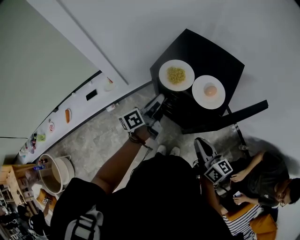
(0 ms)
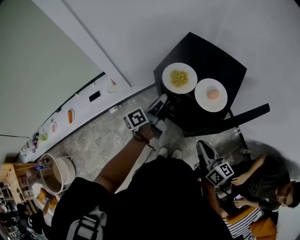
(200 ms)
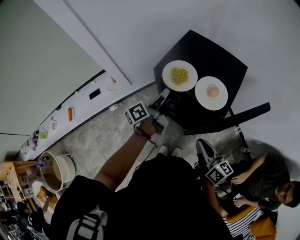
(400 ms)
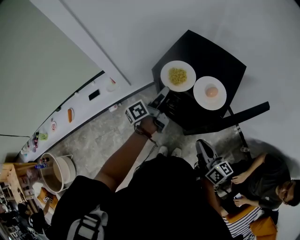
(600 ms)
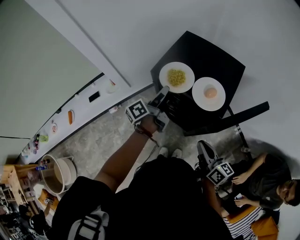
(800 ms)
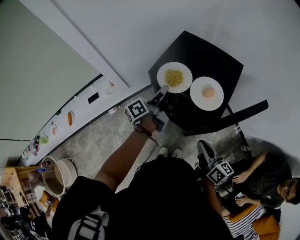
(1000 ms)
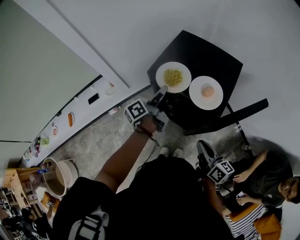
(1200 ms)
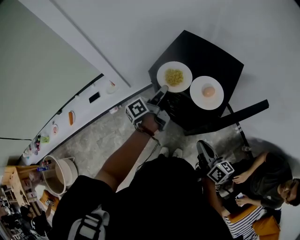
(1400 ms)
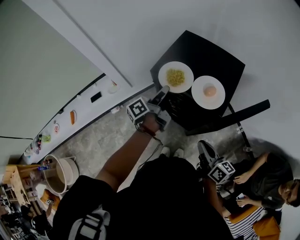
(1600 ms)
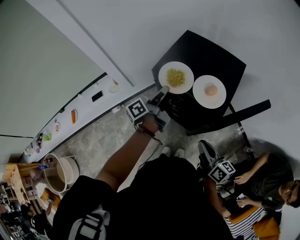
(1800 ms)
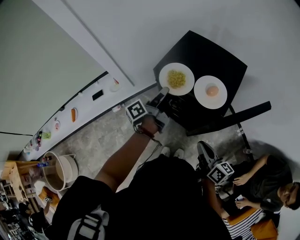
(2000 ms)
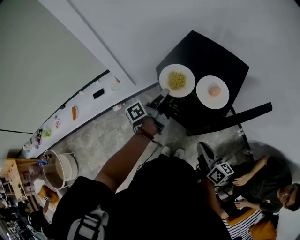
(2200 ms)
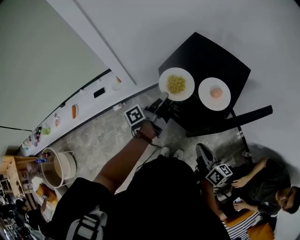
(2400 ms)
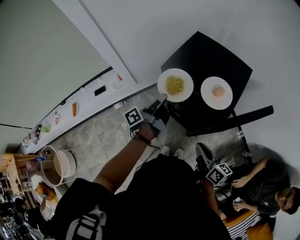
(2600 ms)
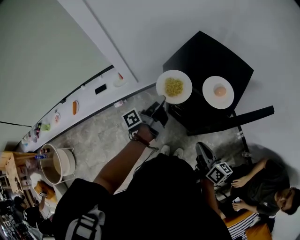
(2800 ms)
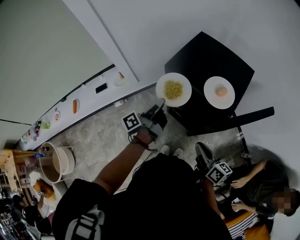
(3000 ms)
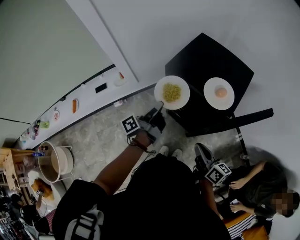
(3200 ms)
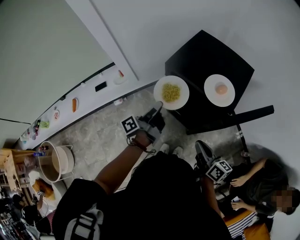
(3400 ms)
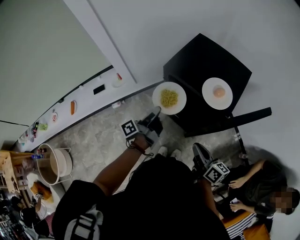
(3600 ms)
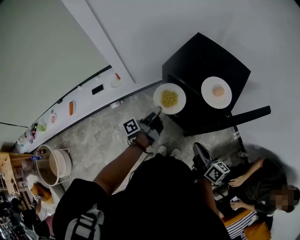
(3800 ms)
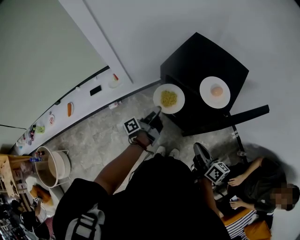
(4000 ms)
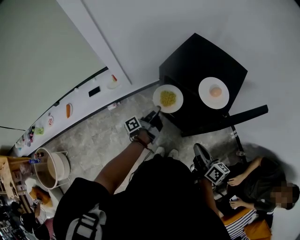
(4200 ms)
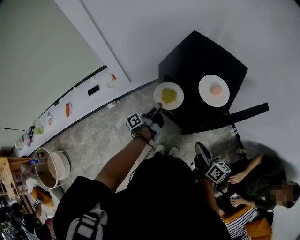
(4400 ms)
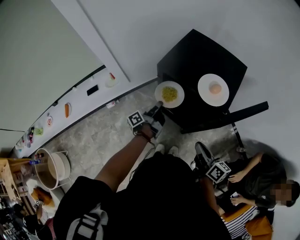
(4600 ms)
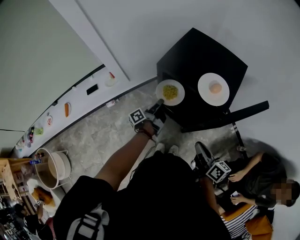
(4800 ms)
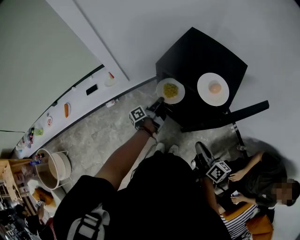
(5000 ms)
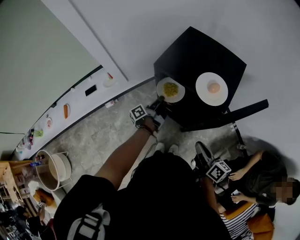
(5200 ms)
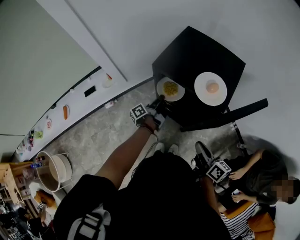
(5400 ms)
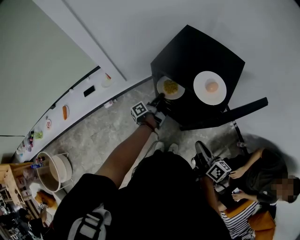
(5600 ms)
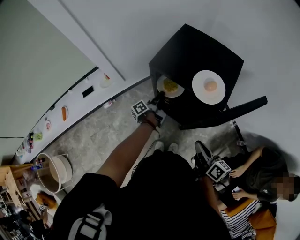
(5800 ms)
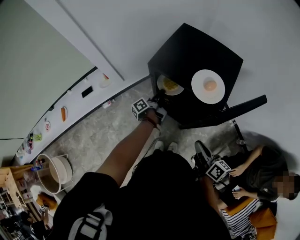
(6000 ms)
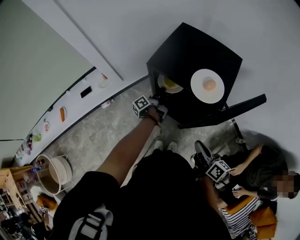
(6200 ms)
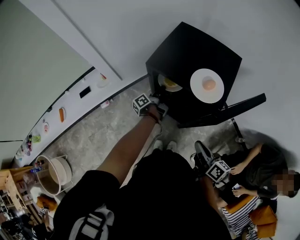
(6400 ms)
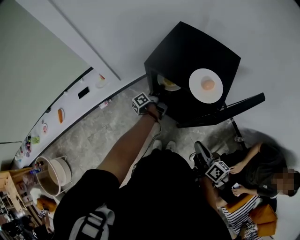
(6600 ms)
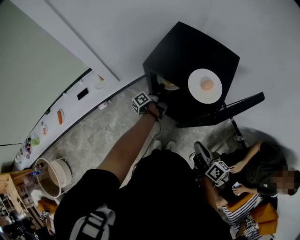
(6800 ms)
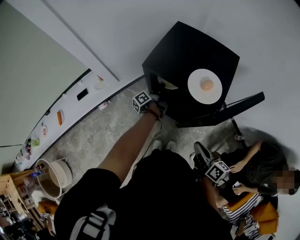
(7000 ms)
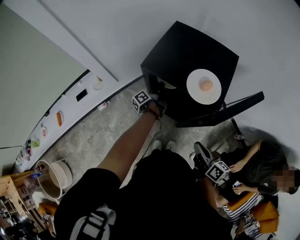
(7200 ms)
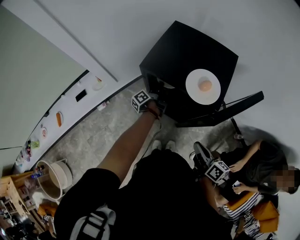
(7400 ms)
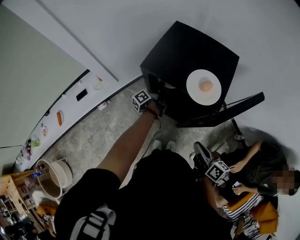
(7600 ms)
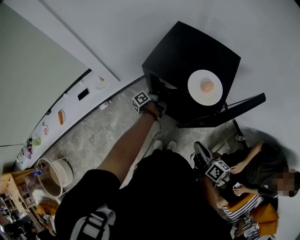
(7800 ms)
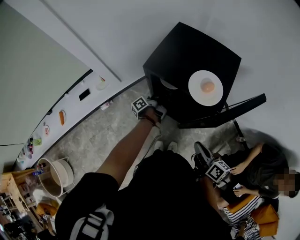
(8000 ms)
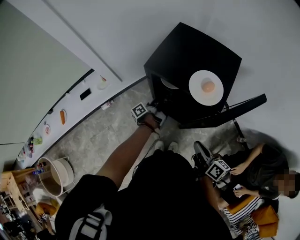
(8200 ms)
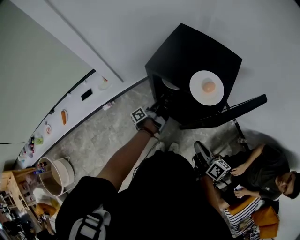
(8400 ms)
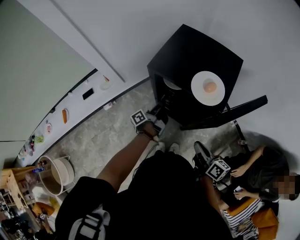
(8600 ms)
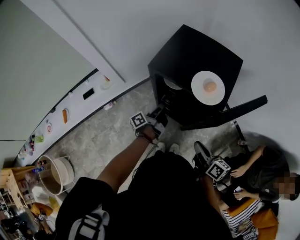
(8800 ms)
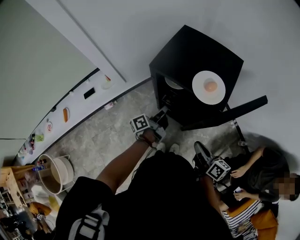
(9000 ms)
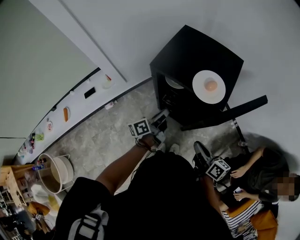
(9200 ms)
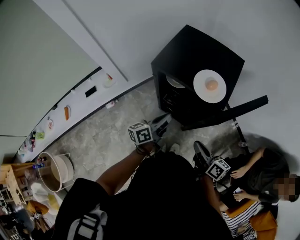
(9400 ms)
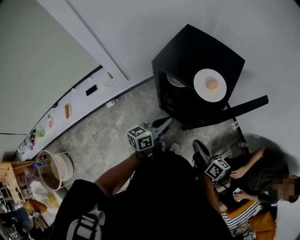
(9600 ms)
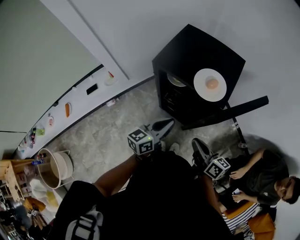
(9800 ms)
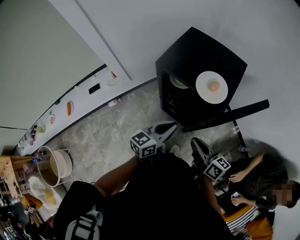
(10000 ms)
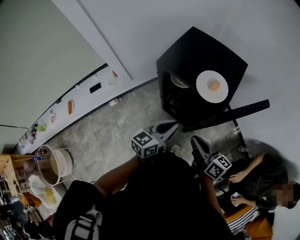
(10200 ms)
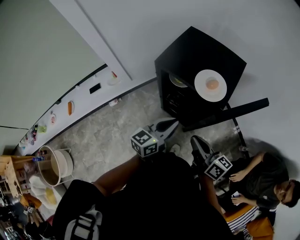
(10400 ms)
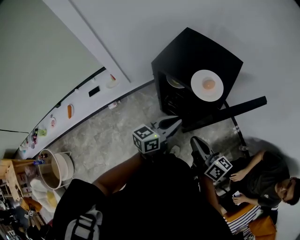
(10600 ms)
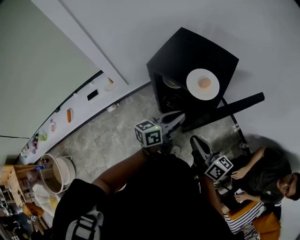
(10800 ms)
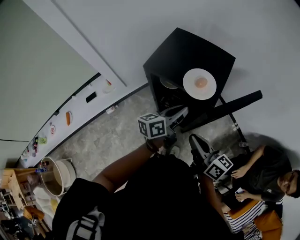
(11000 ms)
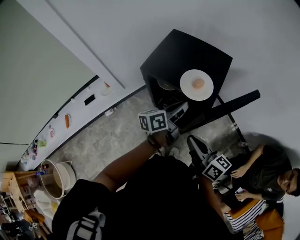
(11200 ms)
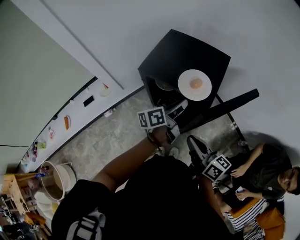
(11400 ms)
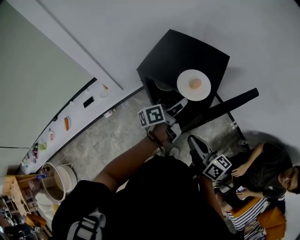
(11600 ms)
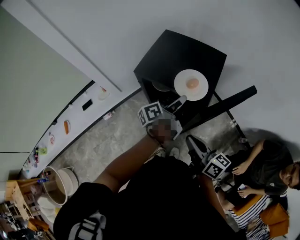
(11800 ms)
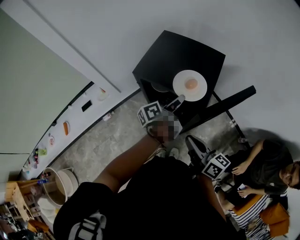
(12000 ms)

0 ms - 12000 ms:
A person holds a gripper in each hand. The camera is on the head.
0 ms - 1600 ms: The left gripper changes its angle by about 20 degrees, and opens, then closes again.
1600 ms - 3000 ms: The left gripper shifts about 10 cm backward and to the left.
3000 ms - 4400 ms: The left gripper goes about 10 cm downward.
4400 ms - 6000 ms: The left gripper heads forward and downward, covering roughly 10 cm.
6000 ms - 7600 ms: The left gripper travels forward by about 5 cm.
7600 ms - 9000 ms: The left gripper travels backward and upward by approximately 15 cm.
9000 ms - 10400 ms: The left gripper goes some 15 cm upward, backward and to the right, and rotates around the line of its fingers by some 50 degrees, clockwise from behind. The right gripper travels upward by approximately 10 cm.
10400 ms - 12000 ms: The left gripper heads forward and to the right, covering about 15 cm, and rotates around the line of its fingers by about 50 degrees, counterclockwise from behind.

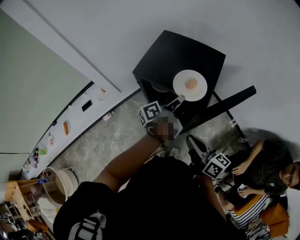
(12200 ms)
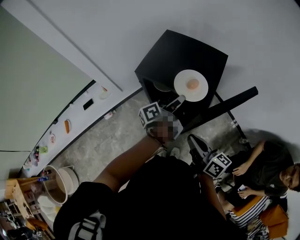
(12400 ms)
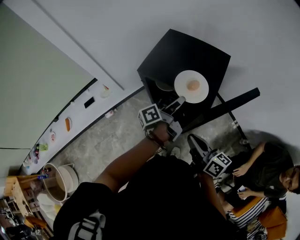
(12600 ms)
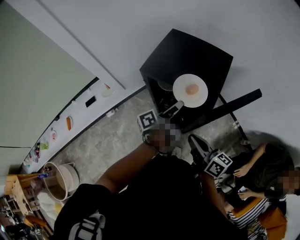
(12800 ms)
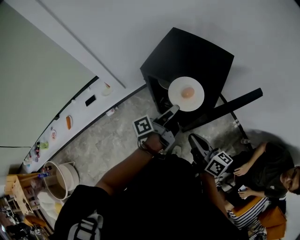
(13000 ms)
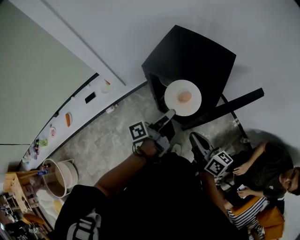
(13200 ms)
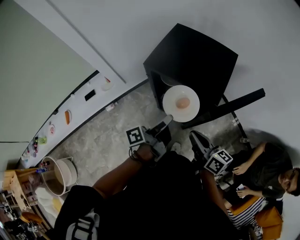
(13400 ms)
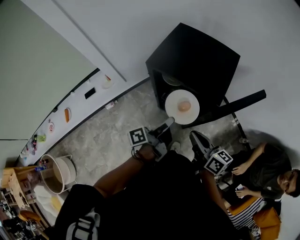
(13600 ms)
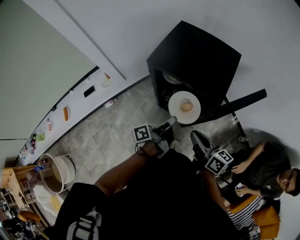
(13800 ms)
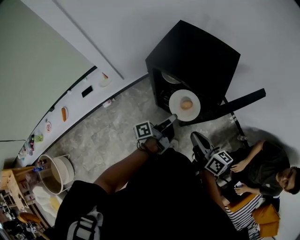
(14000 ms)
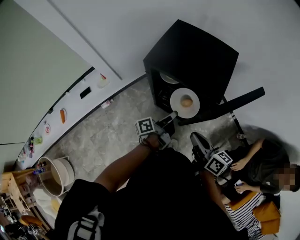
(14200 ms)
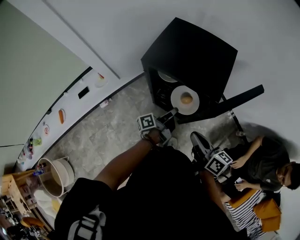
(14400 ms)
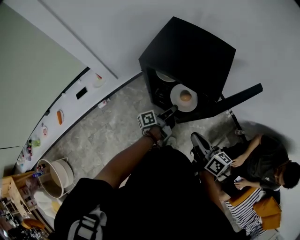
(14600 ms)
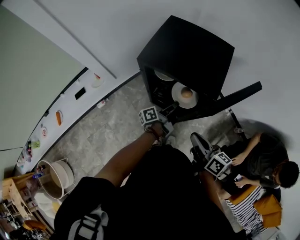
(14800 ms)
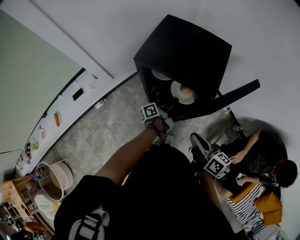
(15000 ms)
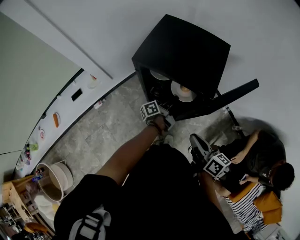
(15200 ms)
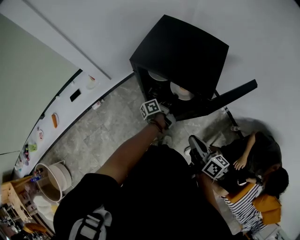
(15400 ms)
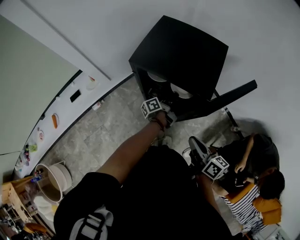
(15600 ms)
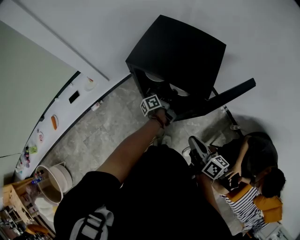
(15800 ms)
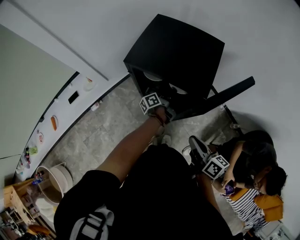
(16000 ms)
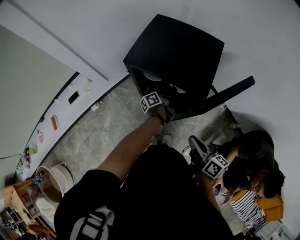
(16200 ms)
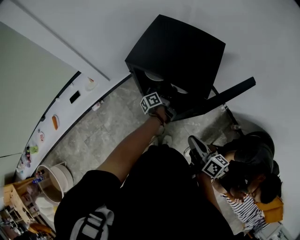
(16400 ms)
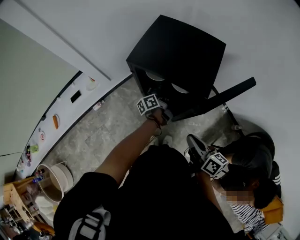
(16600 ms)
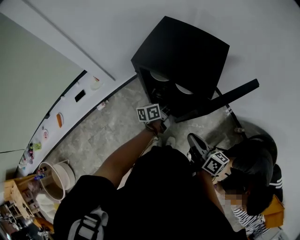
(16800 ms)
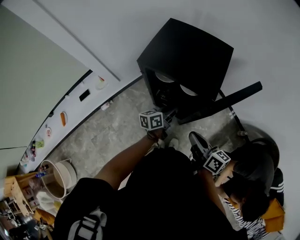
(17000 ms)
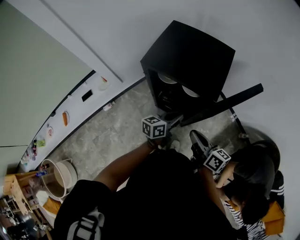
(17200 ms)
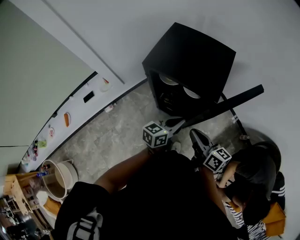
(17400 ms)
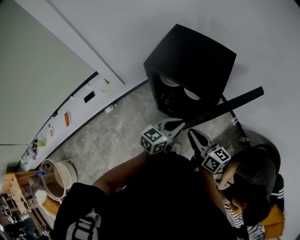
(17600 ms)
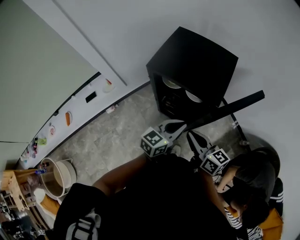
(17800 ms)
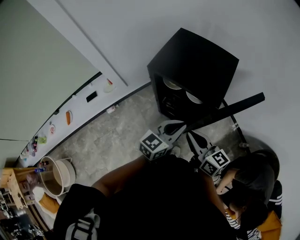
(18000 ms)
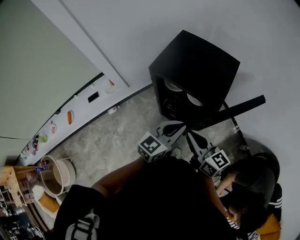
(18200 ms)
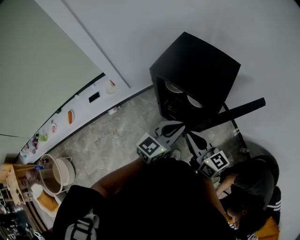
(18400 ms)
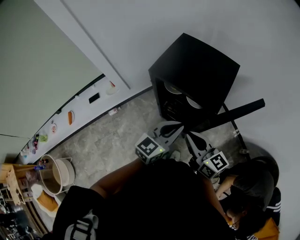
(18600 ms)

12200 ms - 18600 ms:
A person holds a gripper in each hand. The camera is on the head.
12200 ms - 13800 ms: The left gripper heads backward, to the left and downward, covering approximately 15 cm.
13800 ms - 15400 ms: The left gripper goes about 20 cm forward, downward and to the right.
15400 ms - 17000 ms: The left gripper is displaced backward by about 5 cm, and changes its angle by about 40 degrees.
17000 ms - 18600 ms: The left gripper is displaced upward and backward by some 20 cm, and rolls clockwise, seen from behind, by about 40 degrees. Meanwhile the right gripper shifts roughly 5 cm upward, and changes its angle by roughly 30 degrees.

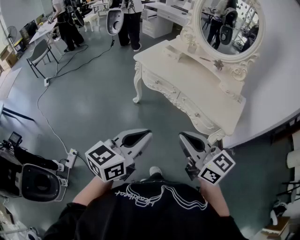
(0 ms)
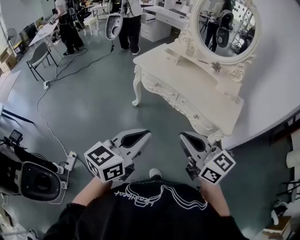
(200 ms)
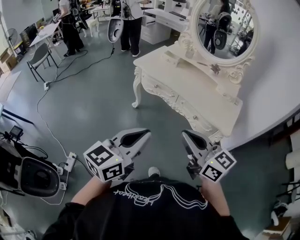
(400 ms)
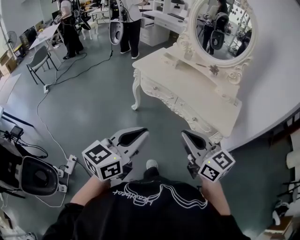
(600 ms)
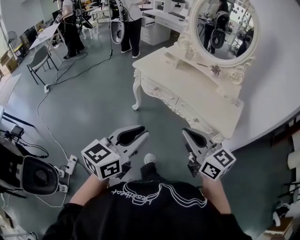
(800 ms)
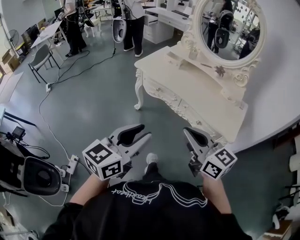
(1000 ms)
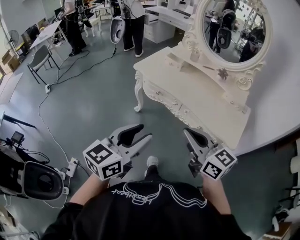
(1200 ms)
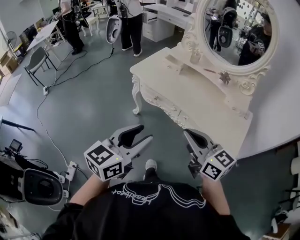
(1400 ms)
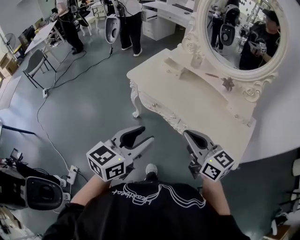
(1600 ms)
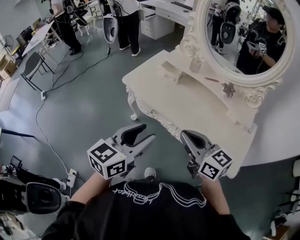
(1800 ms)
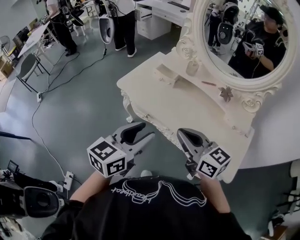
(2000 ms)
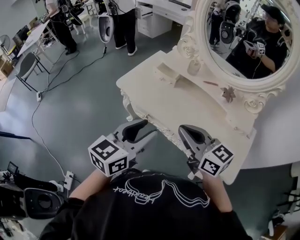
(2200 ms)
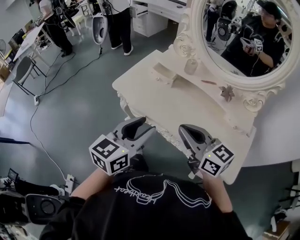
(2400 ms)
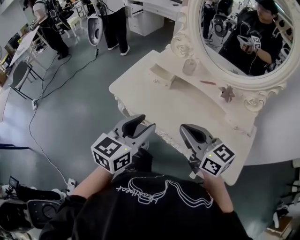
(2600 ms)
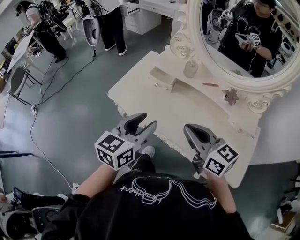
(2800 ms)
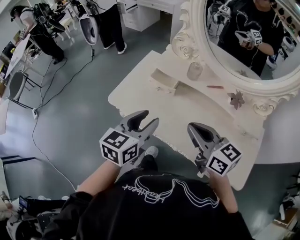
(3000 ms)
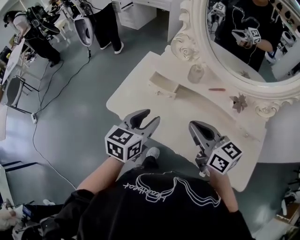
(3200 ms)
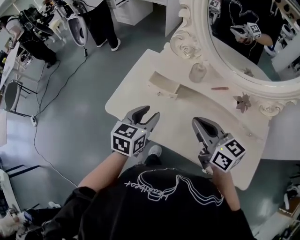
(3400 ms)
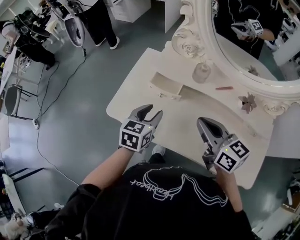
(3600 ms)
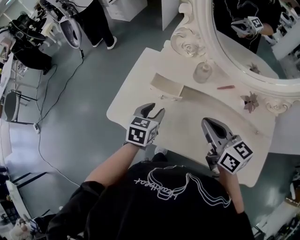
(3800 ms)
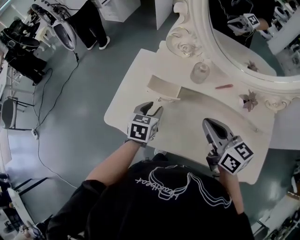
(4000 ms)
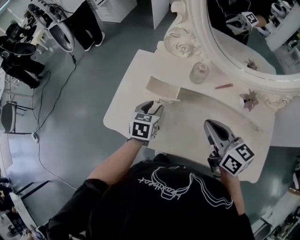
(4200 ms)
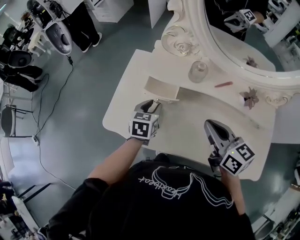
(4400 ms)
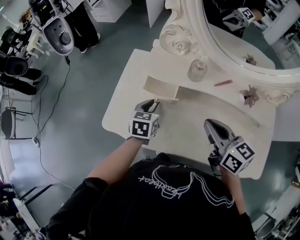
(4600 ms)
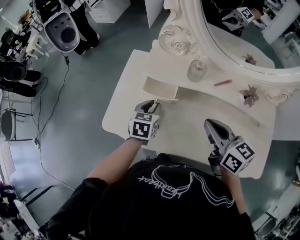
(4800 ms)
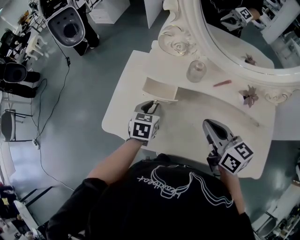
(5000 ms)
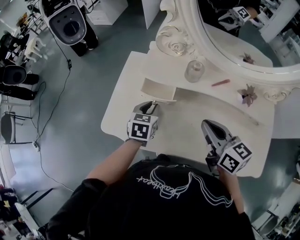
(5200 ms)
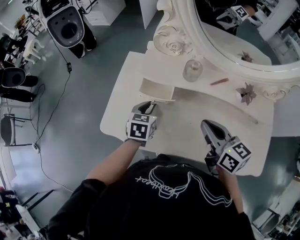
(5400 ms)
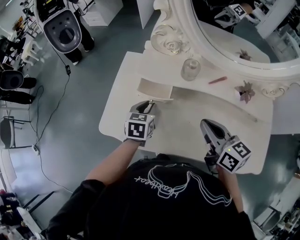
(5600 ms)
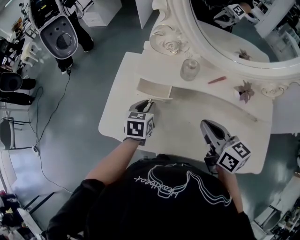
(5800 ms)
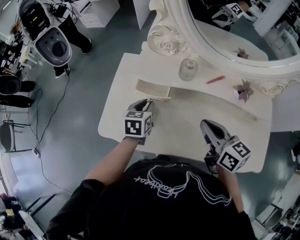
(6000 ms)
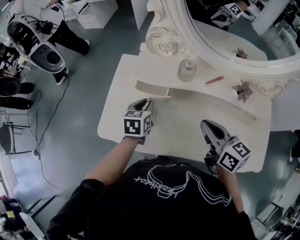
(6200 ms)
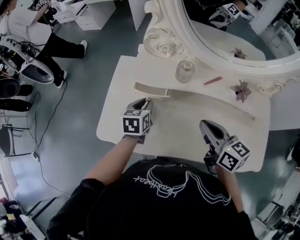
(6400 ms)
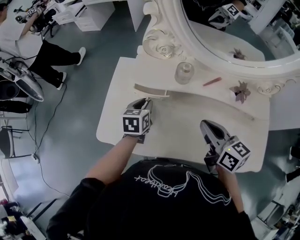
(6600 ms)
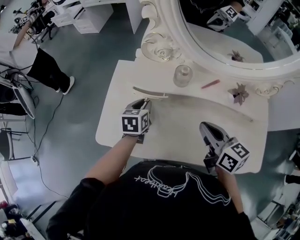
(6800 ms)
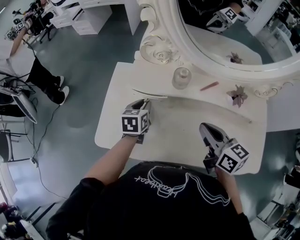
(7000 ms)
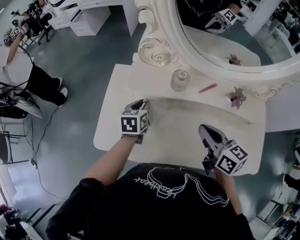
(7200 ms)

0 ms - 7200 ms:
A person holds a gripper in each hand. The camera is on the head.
0 ms - 1400 ms: The two grippers go some 15 cm forward. The left gripper opens up.
1400 ms - 2800 ms: Both grippers move forward, roughly 30 cm.
2800 ms - 4400 ms: The left gripper moves forward and downward, approximately 30 cm, and turns by roughly 30 degrees; the right gripper goes roughly 15 cm forward and downward, and changes its angle by roughly 20 degrees.
4400 ms - 5800 ms: The grippers move only a little.
5800 ms - 7200 ms: The left gripper moves forward, roughly 5 cm.
